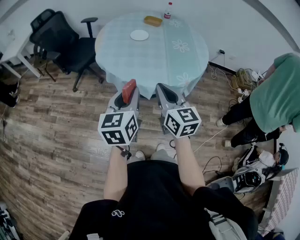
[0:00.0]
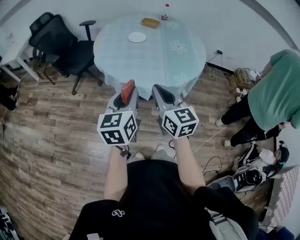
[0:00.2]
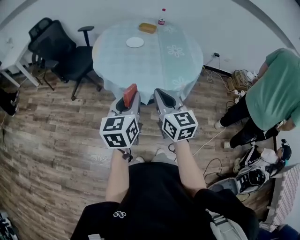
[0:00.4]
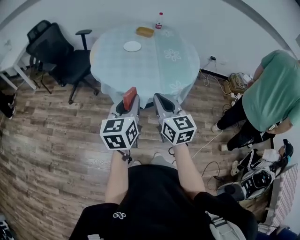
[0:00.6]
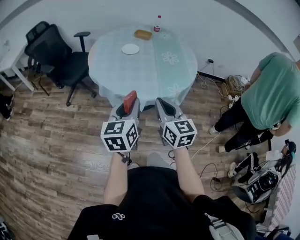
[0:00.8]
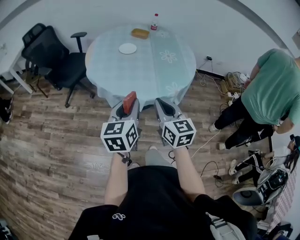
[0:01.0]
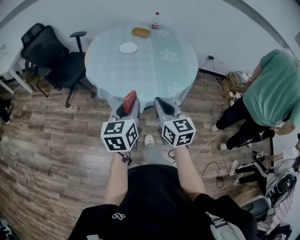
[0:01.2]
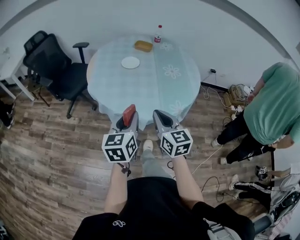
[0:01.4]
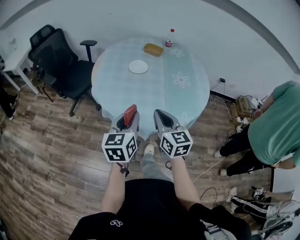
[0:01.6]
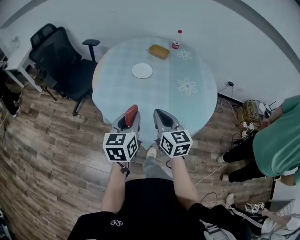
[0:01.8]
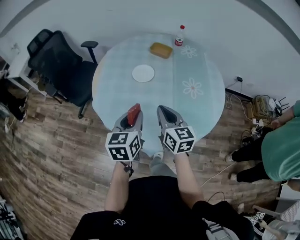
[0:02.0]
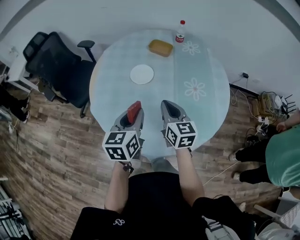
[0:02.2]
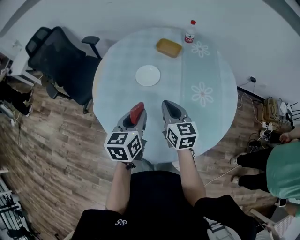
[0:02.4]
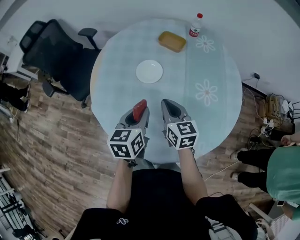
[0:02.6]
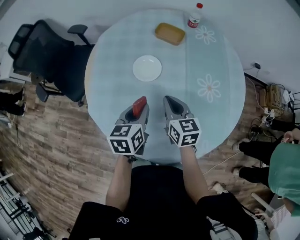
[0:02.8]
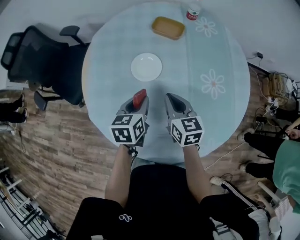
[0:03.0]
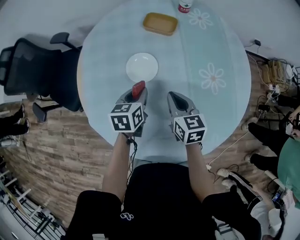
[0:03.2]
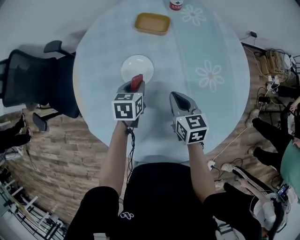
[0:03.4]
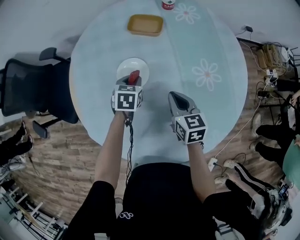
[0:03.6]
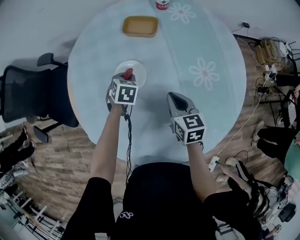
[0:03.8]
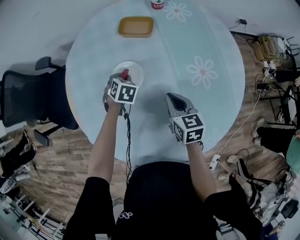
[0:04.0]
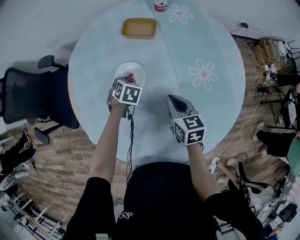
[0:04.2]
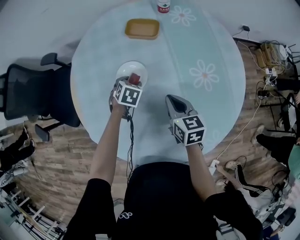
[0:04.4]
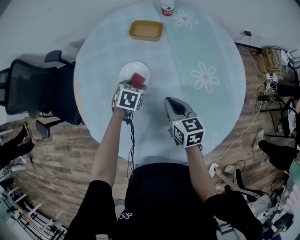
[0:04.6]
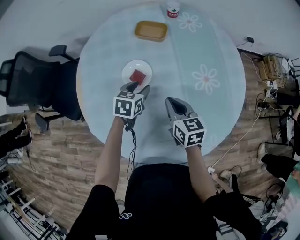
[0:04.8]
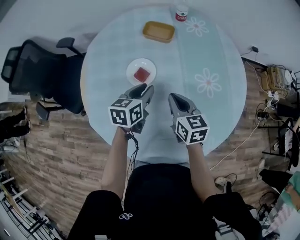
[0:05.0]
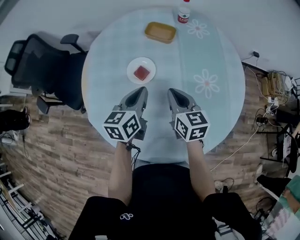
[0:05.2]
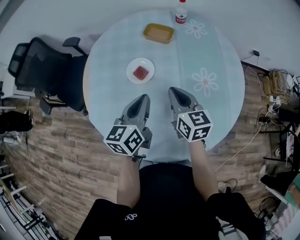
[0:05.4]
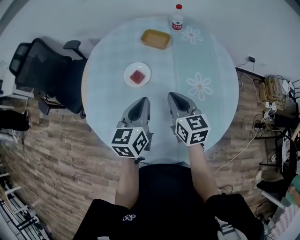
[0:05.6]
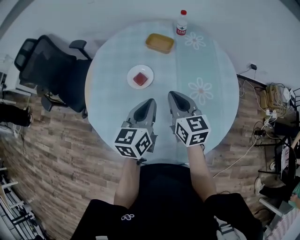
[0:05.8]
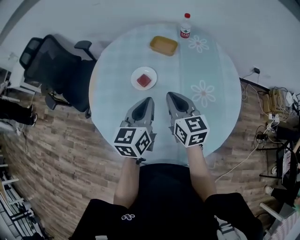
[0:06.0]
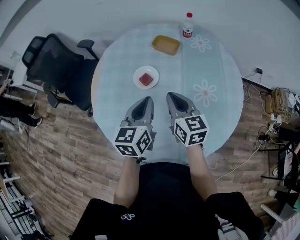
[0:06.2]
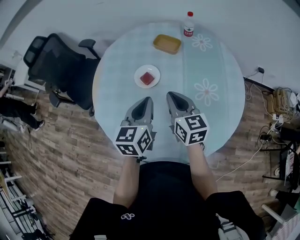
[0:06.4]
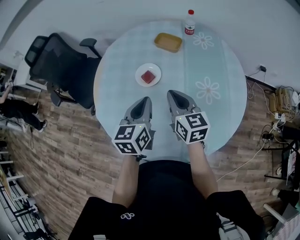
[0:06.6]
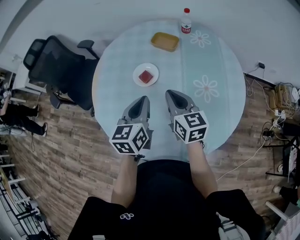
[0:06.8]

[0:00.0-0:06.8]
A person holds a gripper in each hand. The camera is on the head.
0:00.0 to 0:01.4: Both grippers move forward, about 5 cm.
0:01.4 to 0:02.8: The pair of grippers is taken forward, about 50 cm. The left gripper swivels roughly 20 degrees.
0:02.8 to 0:04.0: The left gripper goes approximately 30 cm forward and downward, and twists some 40 degrees clockwise, seen from behind. The right gripper goes roughly 10 cm downward and to the right.
0:04.0 to 0:05.4: The right gripper goes approximately 10 cm upward. Meanwhile the left gripper travels upward and backward by some 30 cm, tilts its fingers roughly 50 degrees upward, and closes.
0:05.4 to 0:06.8: The grippers make only small movements.

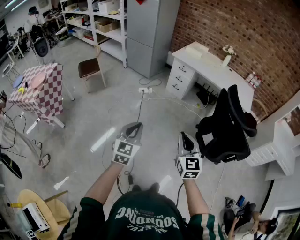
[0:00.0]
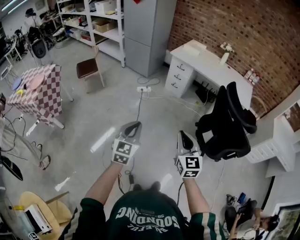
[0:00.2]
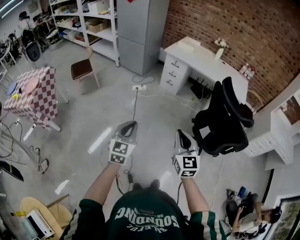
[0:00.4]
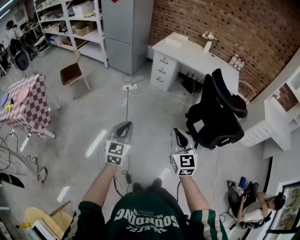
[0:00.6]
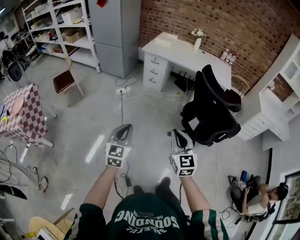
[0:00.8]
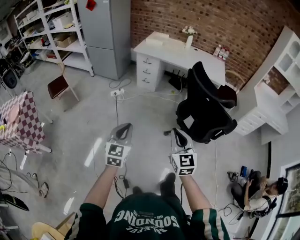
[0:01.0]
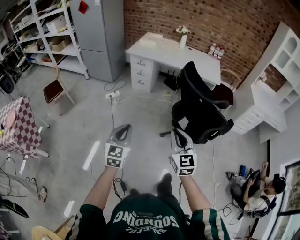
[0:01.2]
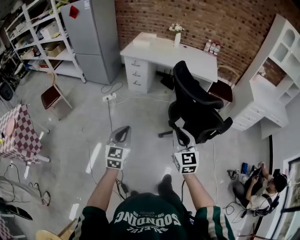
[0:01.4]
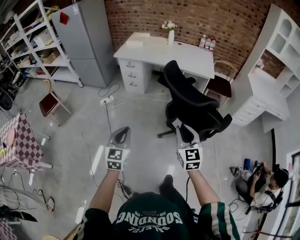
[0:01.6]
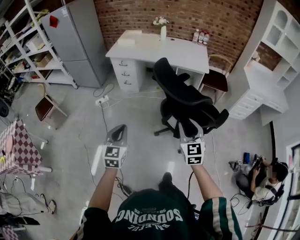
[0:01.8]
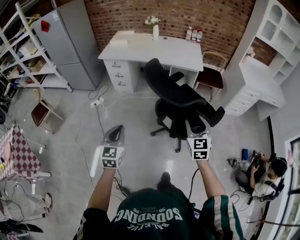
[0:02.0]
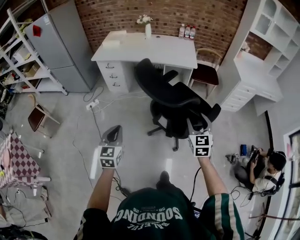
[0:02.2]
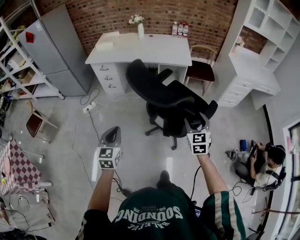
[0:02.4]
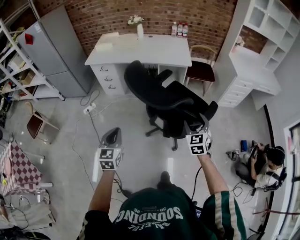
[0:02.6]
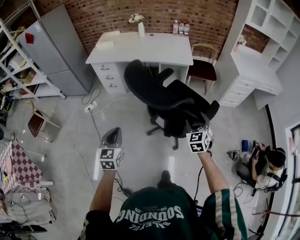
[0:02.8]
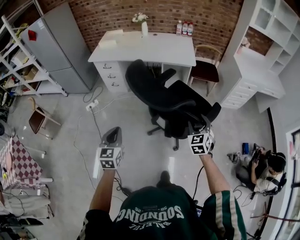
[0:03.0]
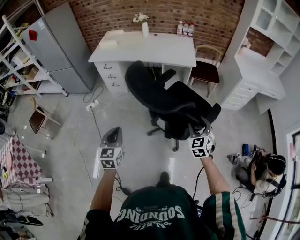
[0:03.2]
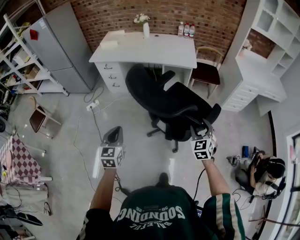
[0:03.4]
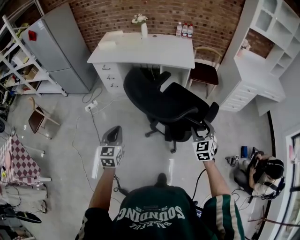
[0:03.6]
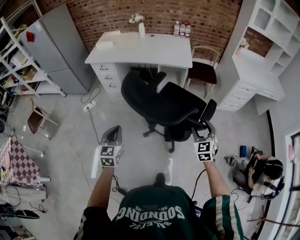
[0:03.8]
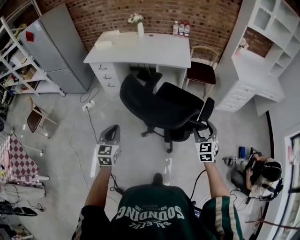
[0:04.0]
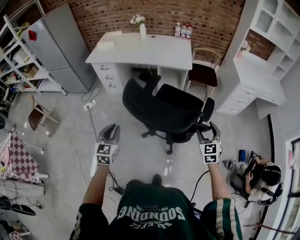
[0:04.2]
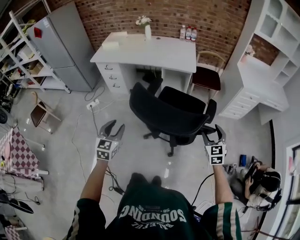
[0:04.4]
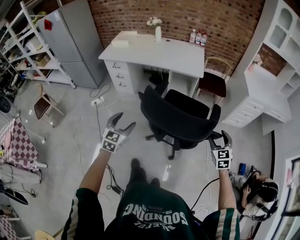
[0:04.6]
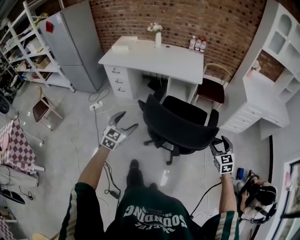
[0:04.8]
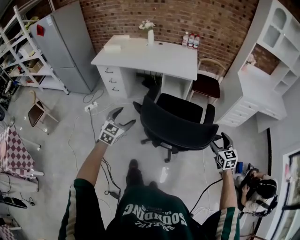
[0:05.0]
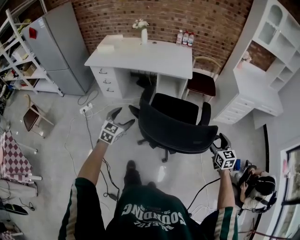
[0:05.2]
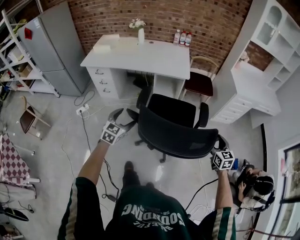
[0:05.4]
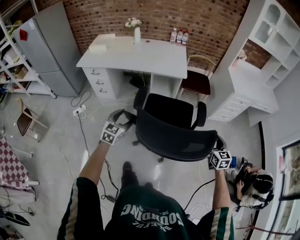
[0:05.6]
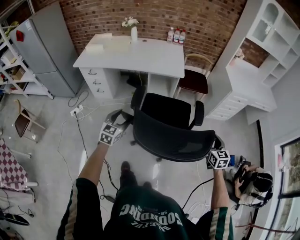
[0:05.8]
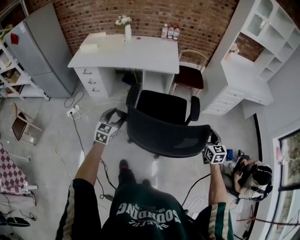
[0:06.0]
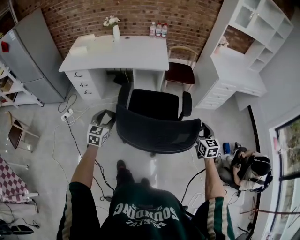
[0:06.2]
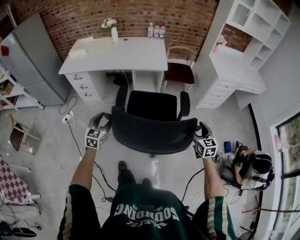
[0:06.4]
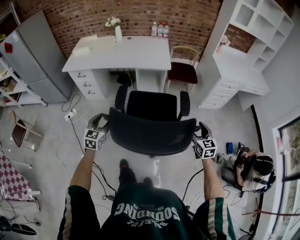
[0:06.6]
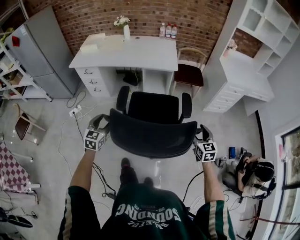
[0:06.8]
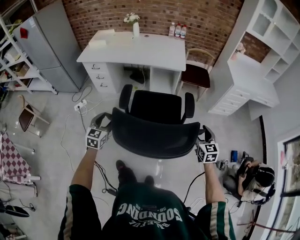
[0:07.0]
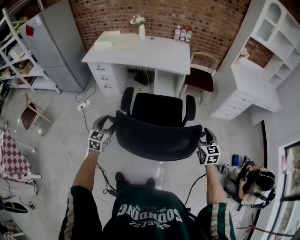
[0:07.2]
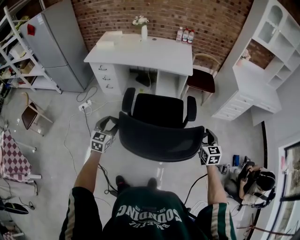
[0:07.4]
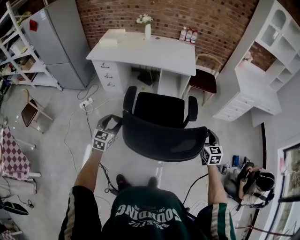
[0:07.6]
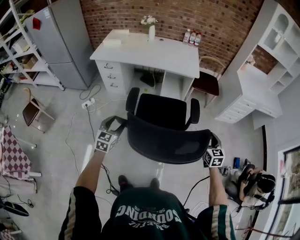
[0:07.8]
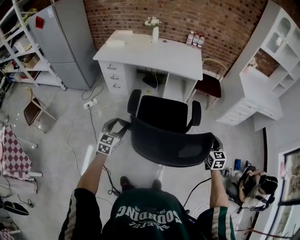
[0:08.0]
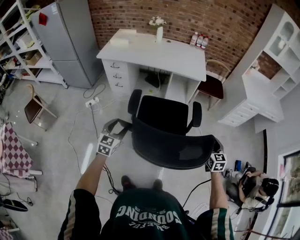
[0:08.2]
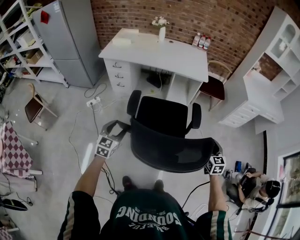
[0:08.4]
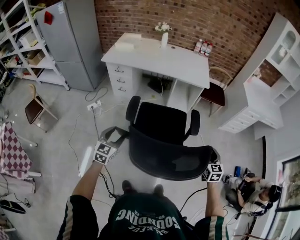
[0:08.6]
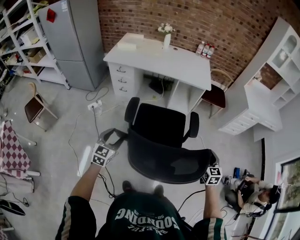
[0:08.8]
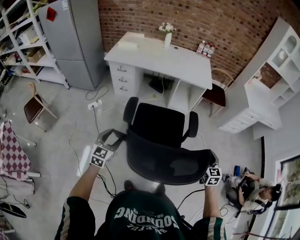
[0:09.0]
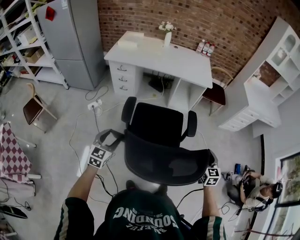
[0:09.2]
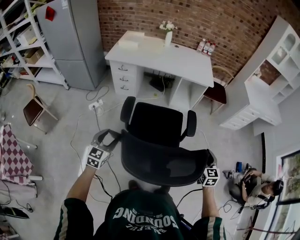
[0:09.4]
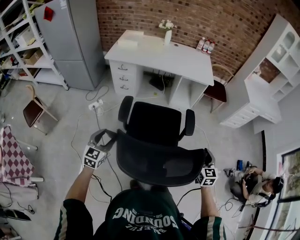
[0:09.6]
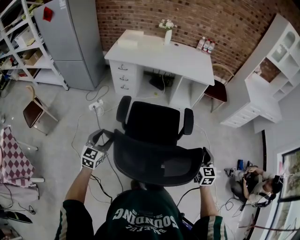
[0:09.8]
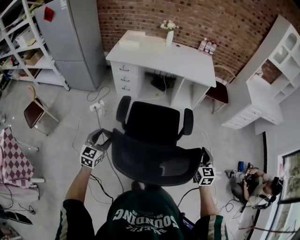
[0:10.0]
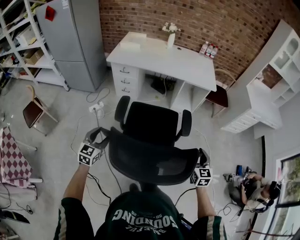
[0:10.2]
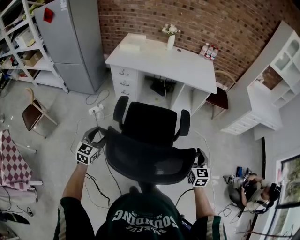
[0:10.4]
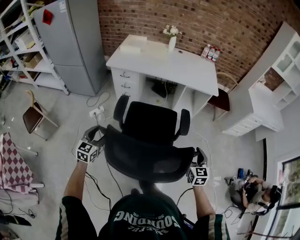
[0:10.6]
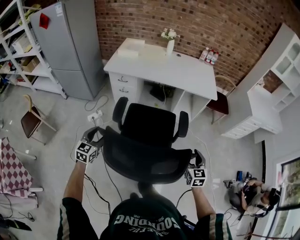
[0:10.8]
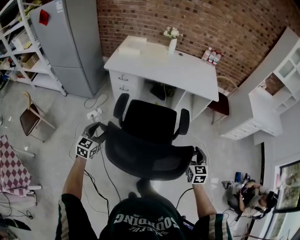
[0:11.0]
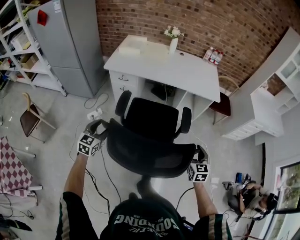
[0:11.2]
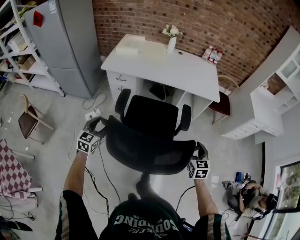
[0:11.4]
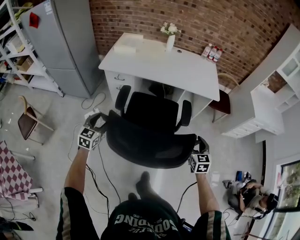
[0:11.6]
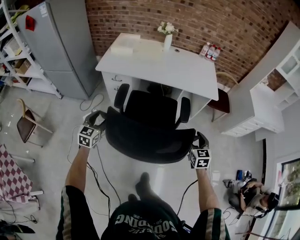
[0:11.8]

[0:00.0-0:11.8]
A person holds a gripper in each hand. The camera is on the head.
0:00.0 to 0:01.4: Both grippers travel together to the right, some 20 cm.
0:01.4 to 0:03.0: The left gripper goes about 20 cm forward and to the right, while the right gripper heads to the right and forward, covering some 35 cm, rotates some 30 degrees, and opens.
0:03.0 to 0:04.4: The right gripper shifts about 15 cm to the right. Meanwhile the left gripper heads to the right and forward, covering approximately 10 cm, and opens its fingers.
0:04.4 to 0:06.0: The left gripper heads forward, covering approximately 15 cm. The right gripper shifts by about 5 cm, and turns by some 20 degrees.
0:06.0 to 0:07.4: The left gripper moves backward and to the left, approximately 15 cm, while the right gripper moves to the left, roughly 10 cm.
0:07.4 to 0:08.8: Both grippers travel together to the left and backward, approximately 15 cm.
0:08.8 to 0:10.4: The two grippers go roughly 20 cm to the left.
0:10.4 to 0:11.8: Both grippers move forward, some 25 cm.

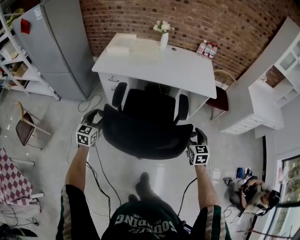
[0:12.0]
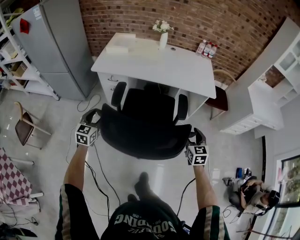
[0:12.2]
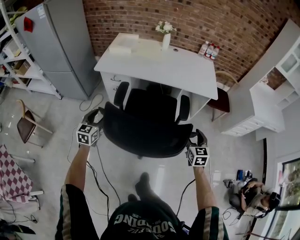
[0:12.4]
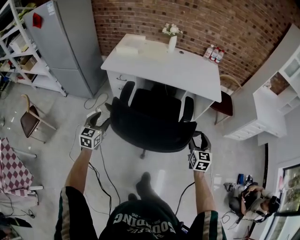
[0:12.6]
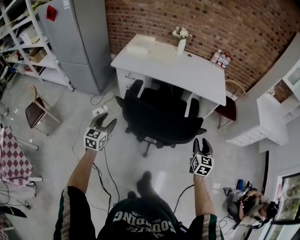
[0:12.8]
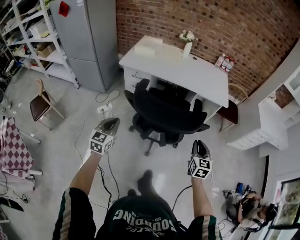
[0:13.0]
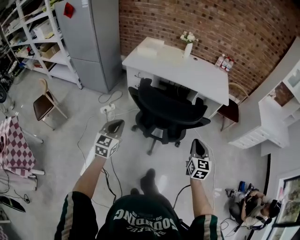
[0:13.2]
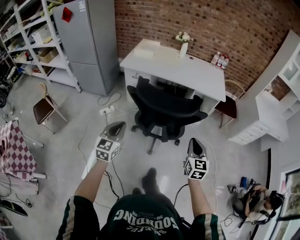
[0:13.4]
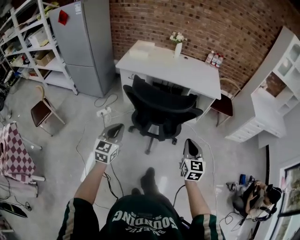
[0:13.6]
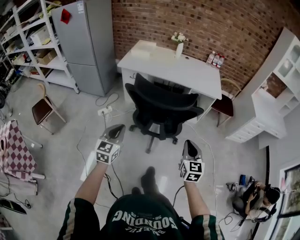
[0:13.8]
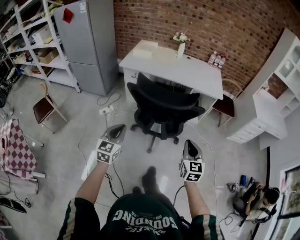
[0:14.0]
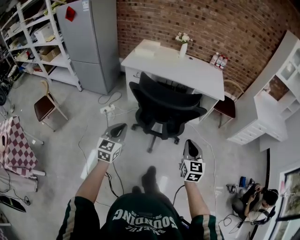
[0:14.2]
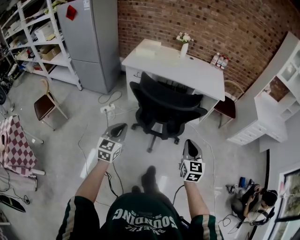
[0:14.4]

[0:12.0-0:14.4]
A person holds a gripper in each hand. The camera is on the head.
0:12.0 to 0:13.2: Both grippers travel together backward, approximately 20 cm. The right gripper closes its fingers. The left gripper closes its fingers.
0:13.2 to 0:14.4: The two grippers go about 10 cm backward.

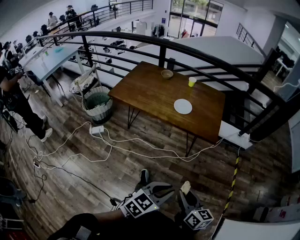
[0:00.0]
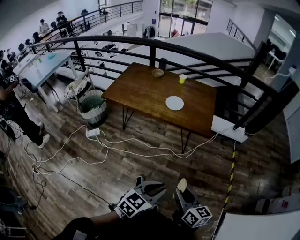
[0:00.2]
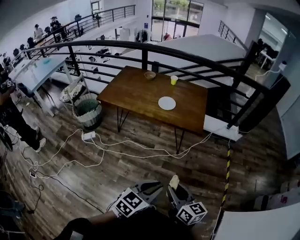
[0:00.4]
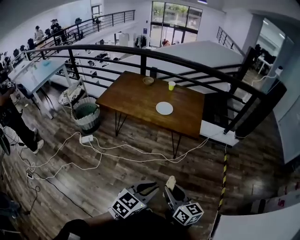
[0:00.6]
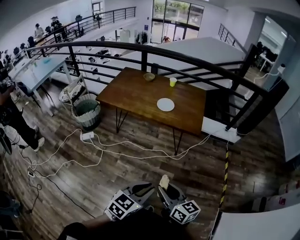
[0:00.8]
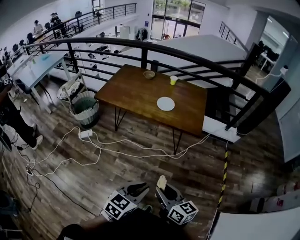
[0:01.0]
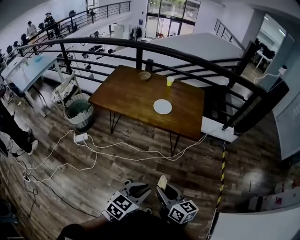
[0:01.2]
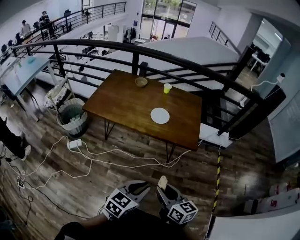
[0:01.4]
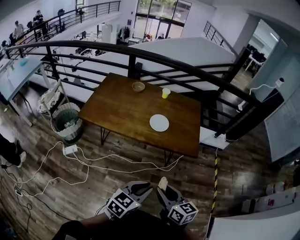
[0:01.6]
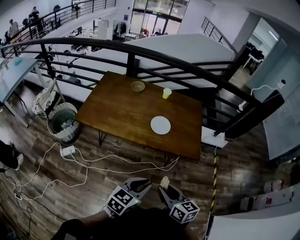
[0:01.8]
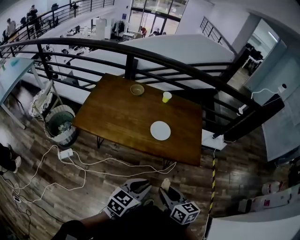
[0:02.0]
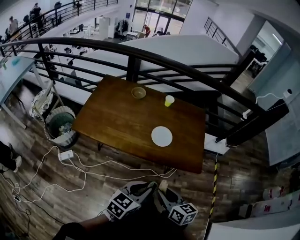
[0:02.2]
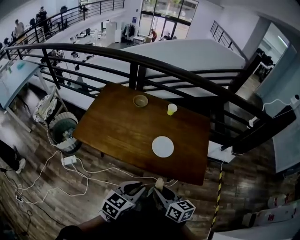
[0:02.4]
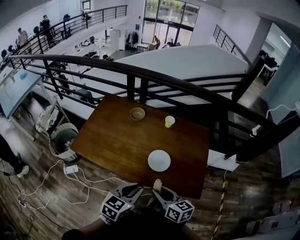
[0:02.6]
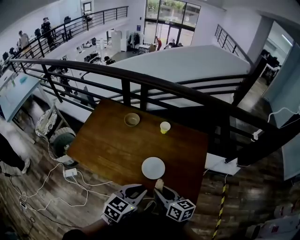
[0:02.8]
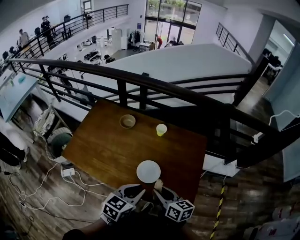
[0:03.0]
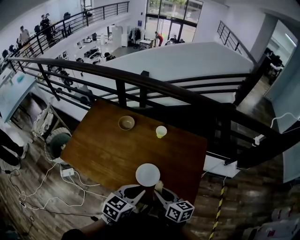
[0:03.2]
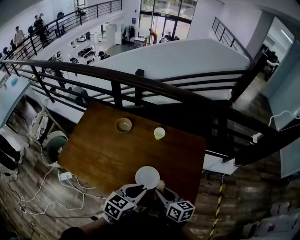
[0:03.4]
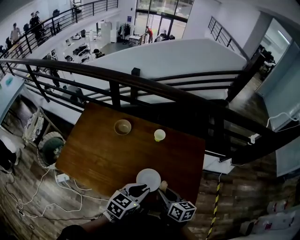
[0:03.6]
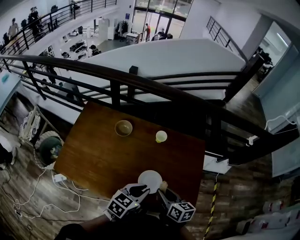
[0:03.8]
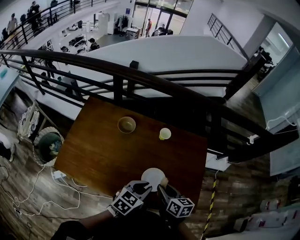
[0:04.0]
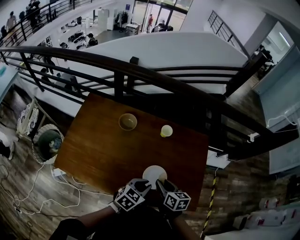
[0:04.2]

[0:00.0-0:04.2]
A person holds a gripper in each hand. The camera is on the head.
0:00.0 to 0:01.4: The grippers both shift forward and to the left by roughly 10 cm.
0:01.4 to 0:02.8: The two grippers travel together, forward, about 40 cm.
0:02.8 to 0:04.2: The two grippers go some 20 cm forward and downward. The right gripper rotates about 20 degrees.
